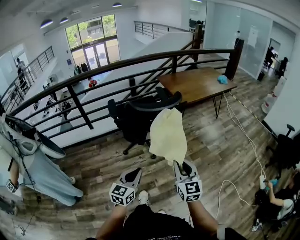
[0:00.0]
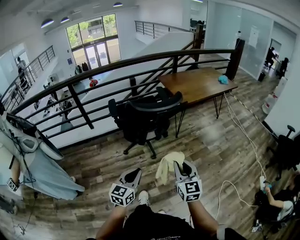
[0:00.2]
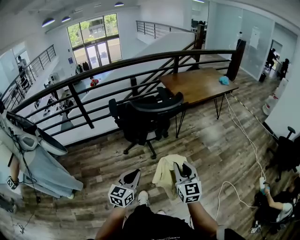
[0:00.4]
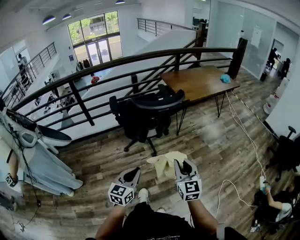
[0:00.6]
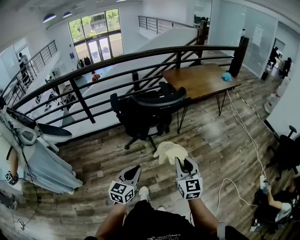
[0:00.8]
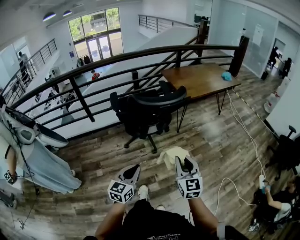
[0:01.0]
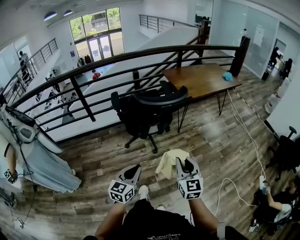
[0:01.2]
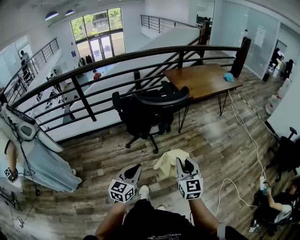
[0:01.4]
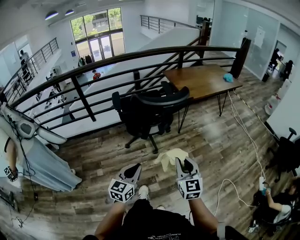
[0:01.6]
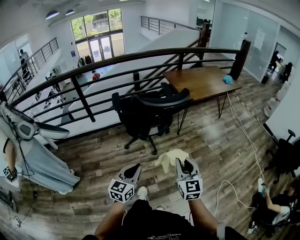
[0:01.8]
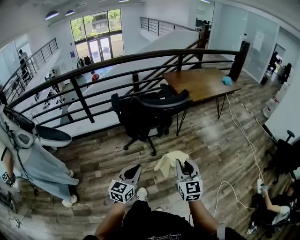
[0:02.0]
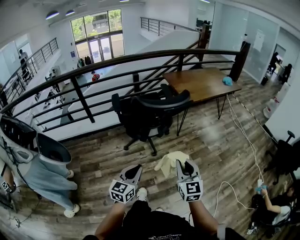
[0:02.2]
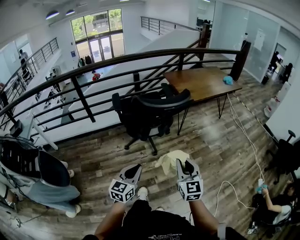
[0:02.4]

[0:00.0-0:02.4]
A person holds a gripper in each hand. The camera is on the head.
0:00.0 to 0:01.2: There are only small adjustments of the grippers.
0:01.2 to 0:02.4: Neither gripper changes place.

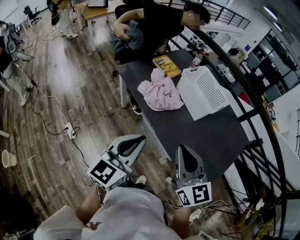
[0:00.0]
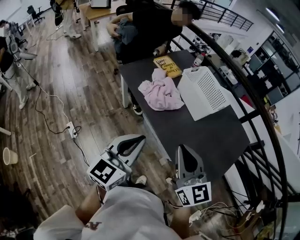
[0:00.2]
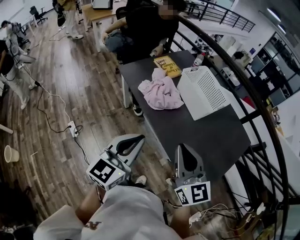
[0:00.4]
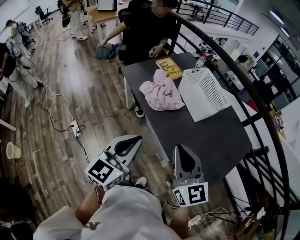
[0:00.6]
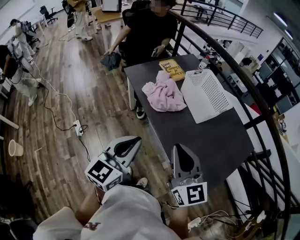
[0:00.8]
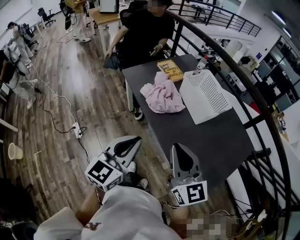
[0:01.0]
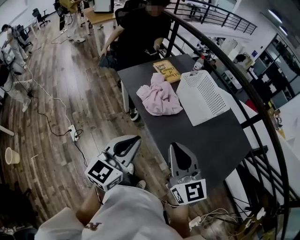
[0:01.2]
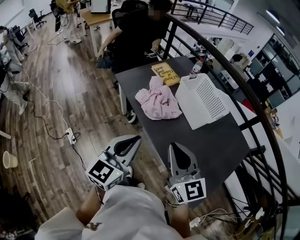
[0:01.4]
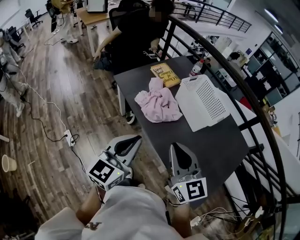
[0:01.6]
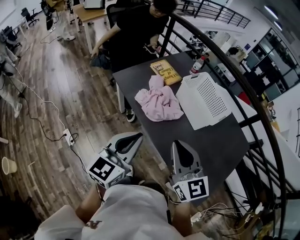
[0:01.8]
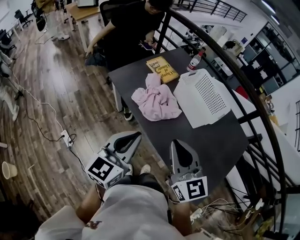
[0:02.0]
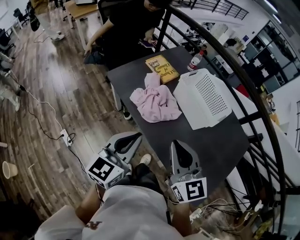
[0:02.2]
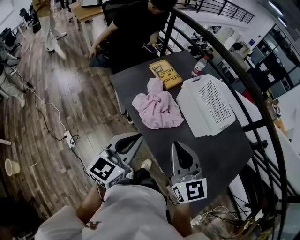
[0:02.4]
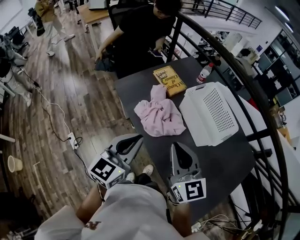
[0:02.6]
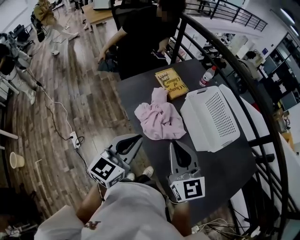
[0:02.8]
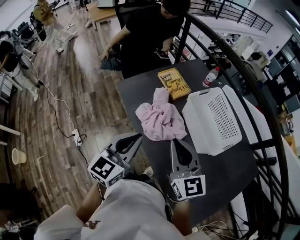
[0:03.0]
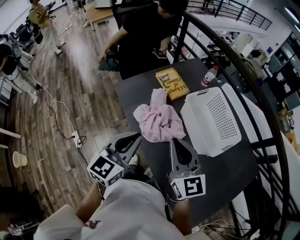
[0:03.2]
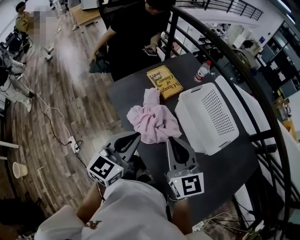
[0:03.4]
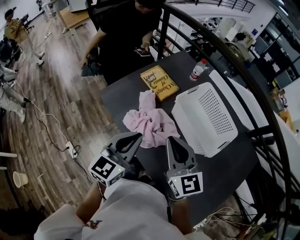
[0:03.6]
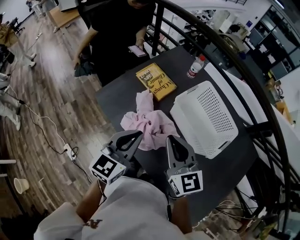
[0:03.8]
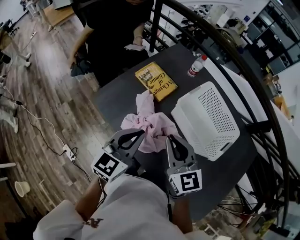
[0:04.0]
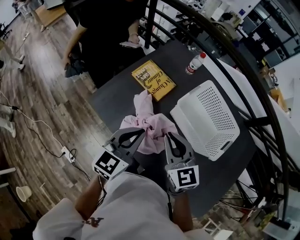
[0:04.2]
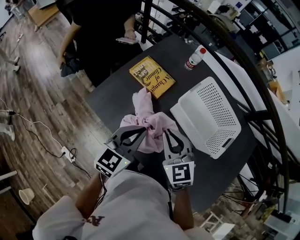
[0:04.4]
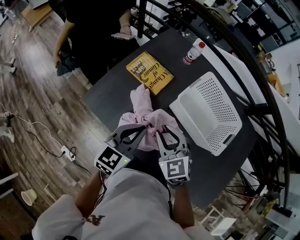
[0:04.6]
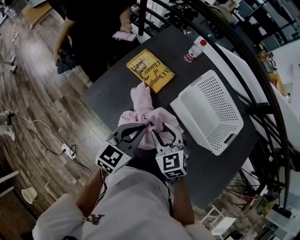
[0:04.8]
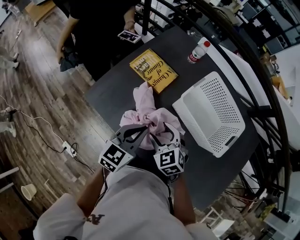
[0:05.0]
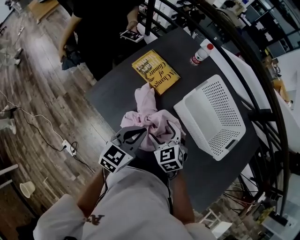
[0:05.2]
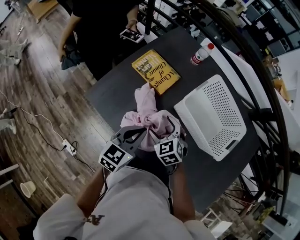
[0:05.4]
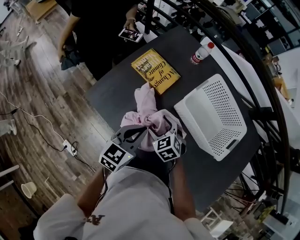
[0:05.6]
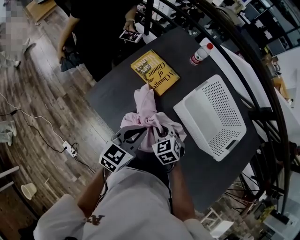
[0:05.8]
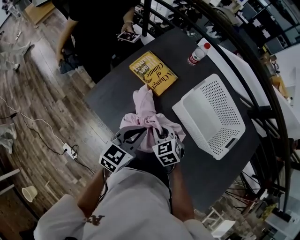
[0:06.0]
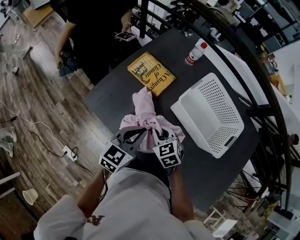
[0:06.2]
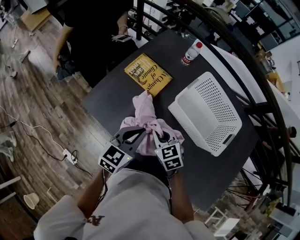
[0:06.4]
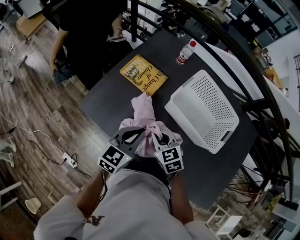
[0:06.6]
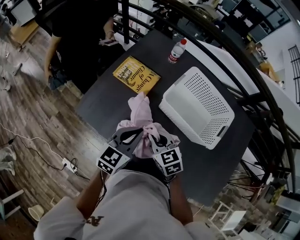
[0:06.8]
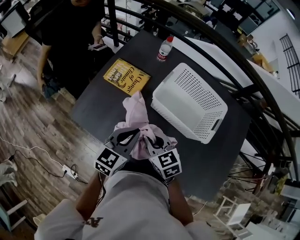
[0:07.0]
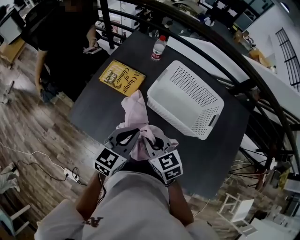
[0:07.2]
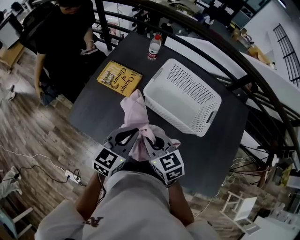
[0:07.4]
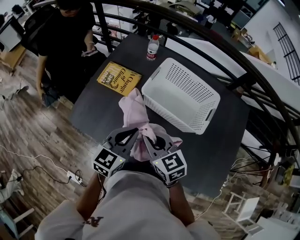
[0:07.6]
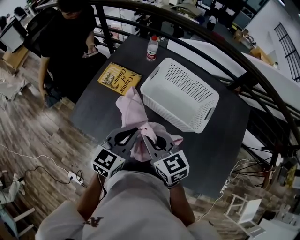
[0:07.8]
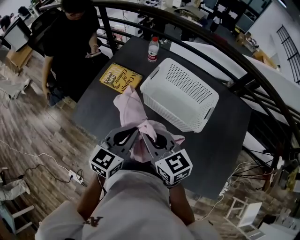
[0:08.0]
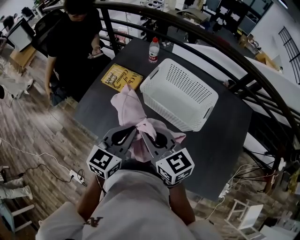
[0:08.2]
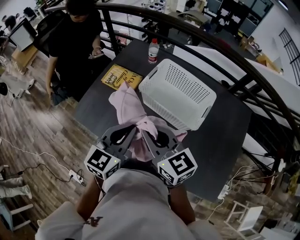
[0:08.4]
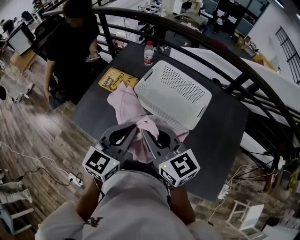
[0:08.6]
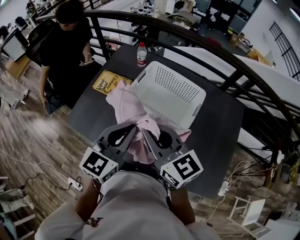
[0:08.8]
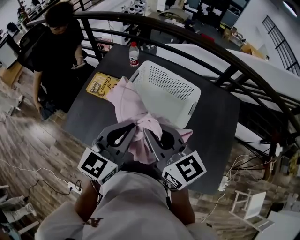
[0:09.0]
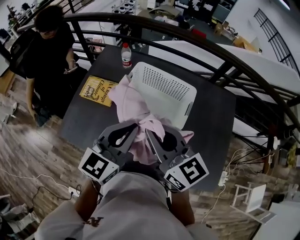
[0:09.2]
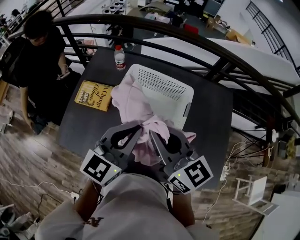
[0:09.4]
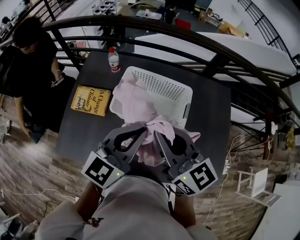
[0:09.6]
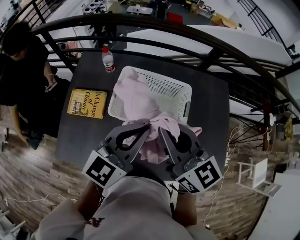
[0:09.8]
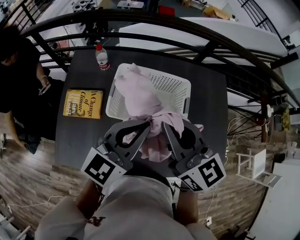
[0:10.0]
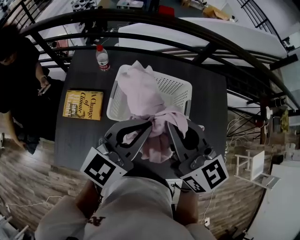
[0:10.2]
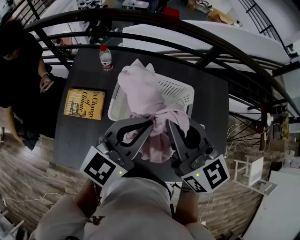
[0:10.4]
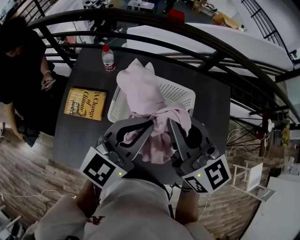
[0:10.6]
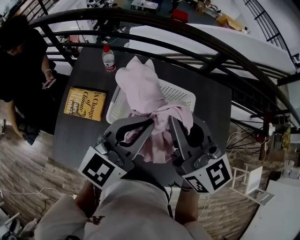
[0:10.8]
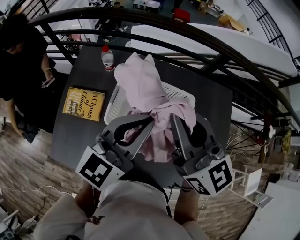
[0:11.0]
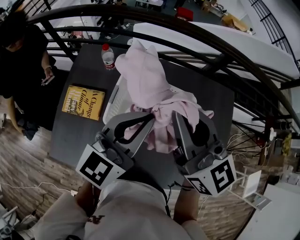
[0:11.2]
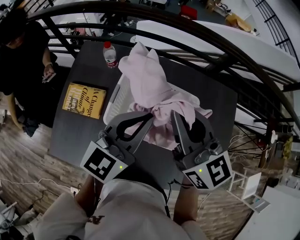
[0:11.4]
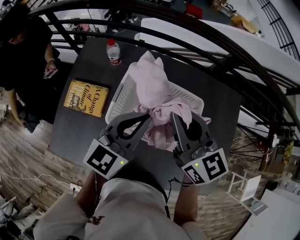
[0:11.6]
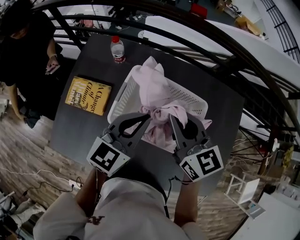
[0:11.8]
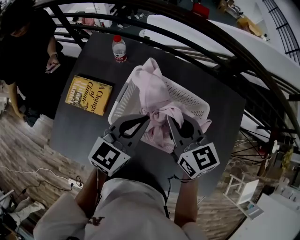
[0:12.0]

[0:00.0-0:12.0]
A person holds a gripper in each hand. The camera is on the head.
0:00.0 to 0:01.6: The grippers both shift forward by approximately 5 cm.
0:01.6 to 0:03.0: Both grippers travel together forward, approximately 15 cm.
0:03.0 to 0:04.4: Both grippers move forward and downward, roughly 20 cm. The left gripper turns by about 30 degrees. The right gripper swivels roughly 30 degrees.
0:04.4 to 0:06.0: The right gripper heads downward, covering about 15 cm, turns by some 20 degrees, and opens, then closes again; the left gripper moves downward, roughly 5 cm.
0:06.0 to 0:07.6: The left gripper is displaced to the right and upward by roughly 10 cm. Meanwhile the right gripper moves upward and to the right, about 15 cm, and swivels about 30 degrees.
0:07.6 to 0:09.0: The two grippers go roughly 15 cm upward and to the right. The right gripper swivels roughly 20 degrees.
0:09.0 to 0:10.4: The right gripper shifts by about 15 cm, and turns by about 20 degrees. The left gripper shifts by some 15 cm, and swivels about 30 degrees.
0:10.4 to 0:12.0: The two grippers go about 15 cm downward and forward.

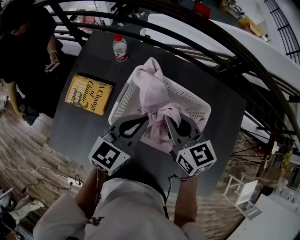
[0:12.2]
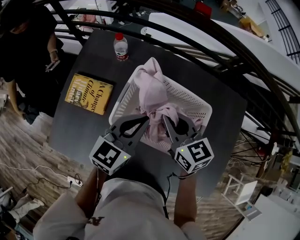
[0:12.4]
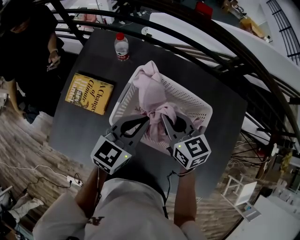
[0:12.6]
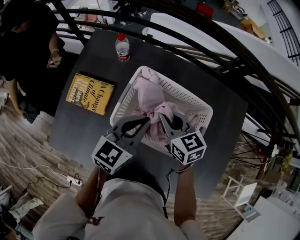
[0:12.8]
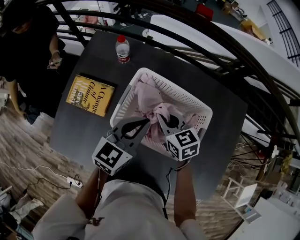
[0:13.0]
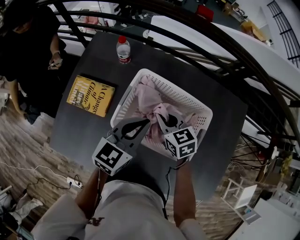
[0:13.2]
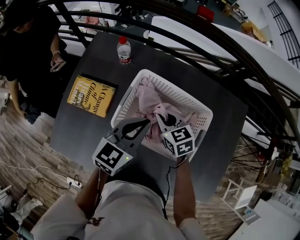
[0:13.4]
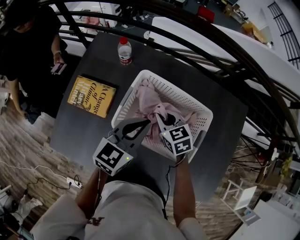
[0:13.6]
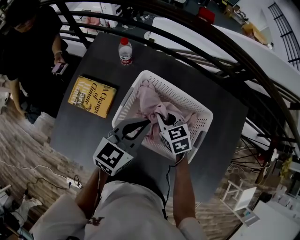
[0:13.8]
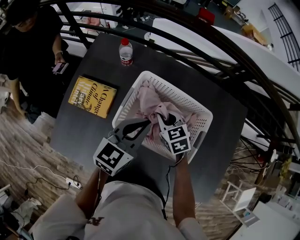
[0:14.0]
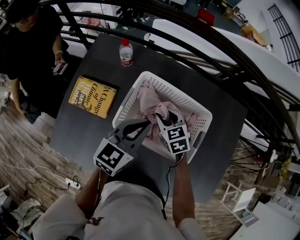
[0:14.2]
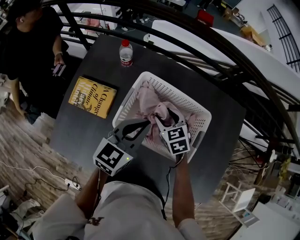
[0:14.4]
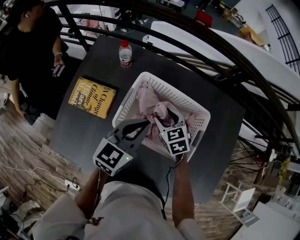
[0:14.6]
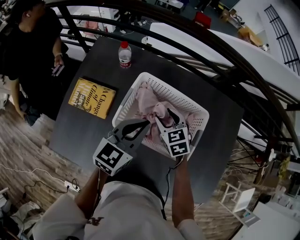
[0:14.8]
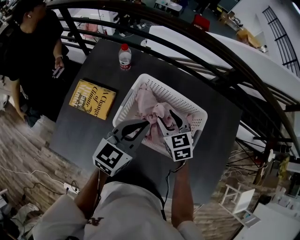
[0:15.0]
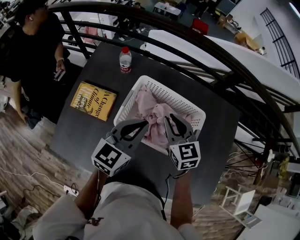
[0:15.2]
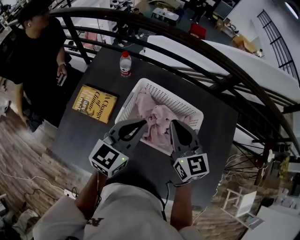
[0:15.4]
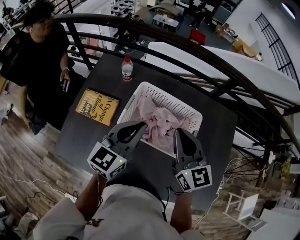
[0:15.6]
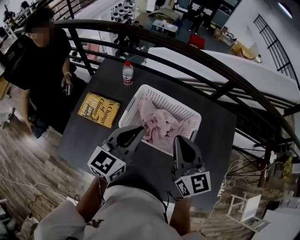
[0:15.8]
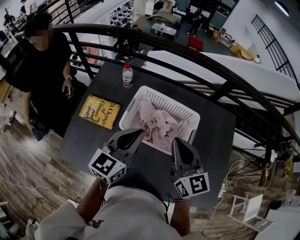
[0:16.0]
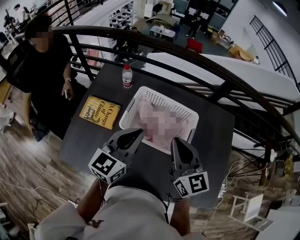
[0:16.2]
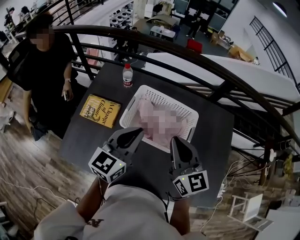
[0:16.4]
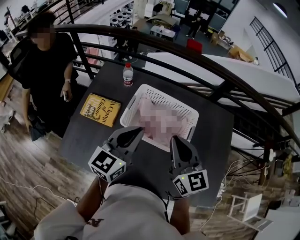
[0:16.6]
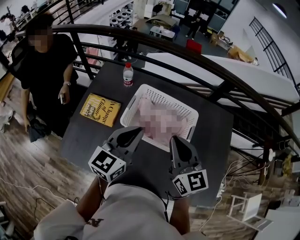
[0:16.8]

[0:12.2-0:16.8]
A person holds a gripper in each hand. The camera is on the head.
0:12.2 to 0:13.8: The right gripper goes approximately 15 cm downward, and turns by approximately 20 degrees.
0:13.8 to 0:15.2: The right gripper goes some 10 cm upward, turns by roughly 20 degrees, and opens, then closes again.
0:15.2 to 0:16.8: The right gripper travels upward and backward by some 20 cm, and swivels some 20 degrees. The left gripper goes roughly 10 cm backward and upward.

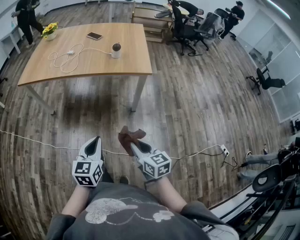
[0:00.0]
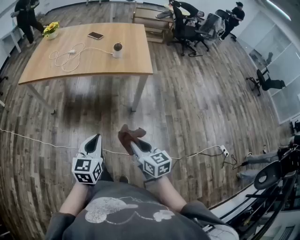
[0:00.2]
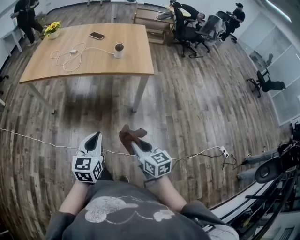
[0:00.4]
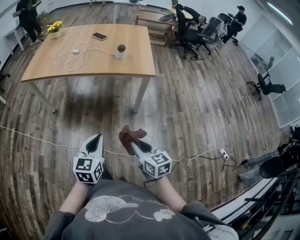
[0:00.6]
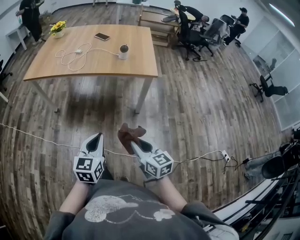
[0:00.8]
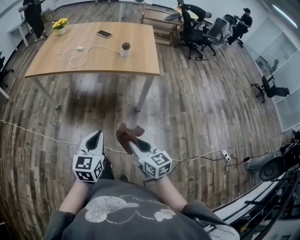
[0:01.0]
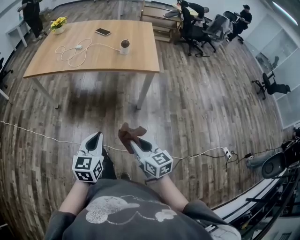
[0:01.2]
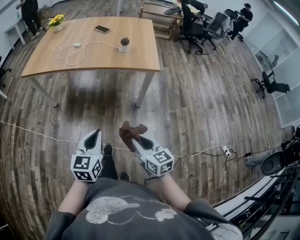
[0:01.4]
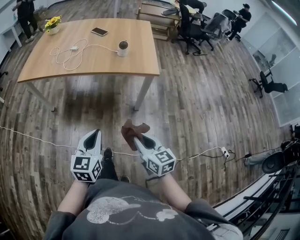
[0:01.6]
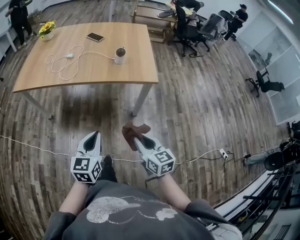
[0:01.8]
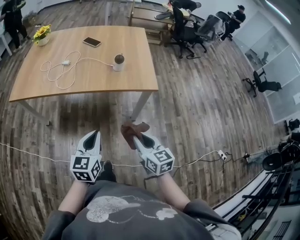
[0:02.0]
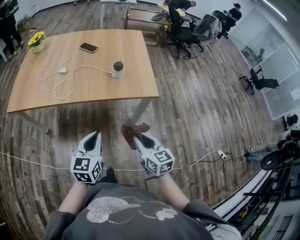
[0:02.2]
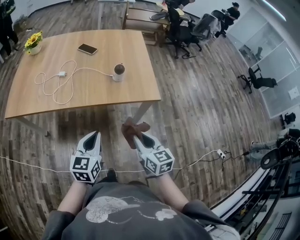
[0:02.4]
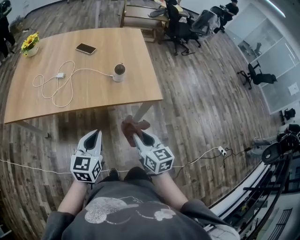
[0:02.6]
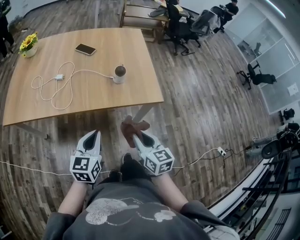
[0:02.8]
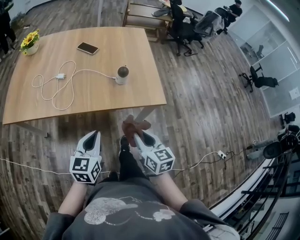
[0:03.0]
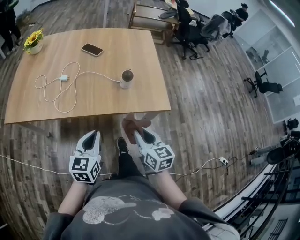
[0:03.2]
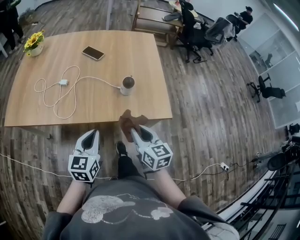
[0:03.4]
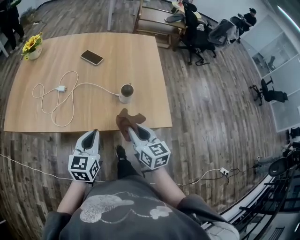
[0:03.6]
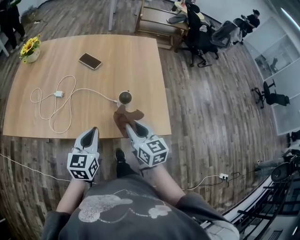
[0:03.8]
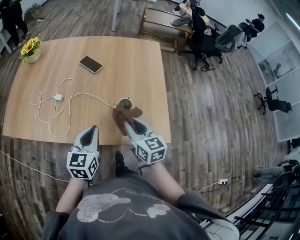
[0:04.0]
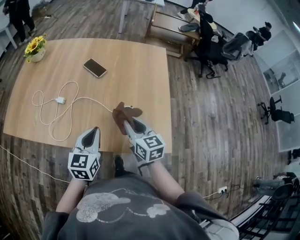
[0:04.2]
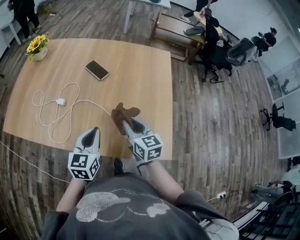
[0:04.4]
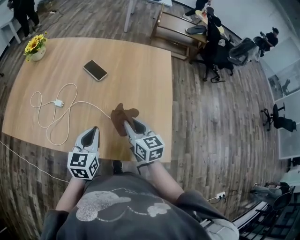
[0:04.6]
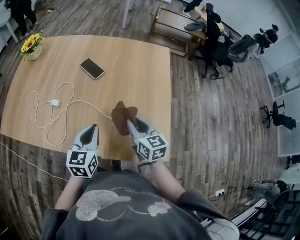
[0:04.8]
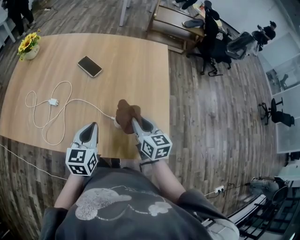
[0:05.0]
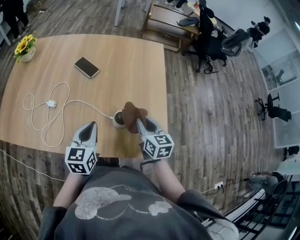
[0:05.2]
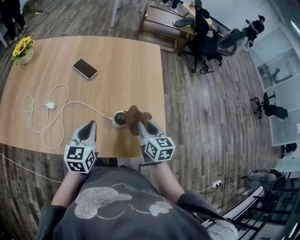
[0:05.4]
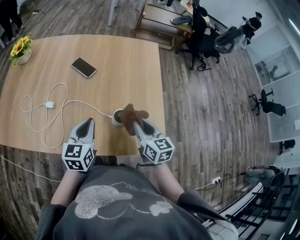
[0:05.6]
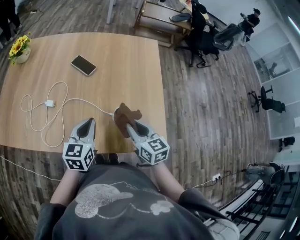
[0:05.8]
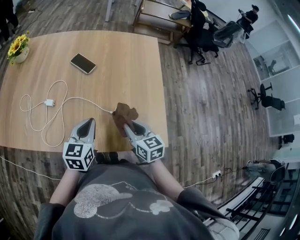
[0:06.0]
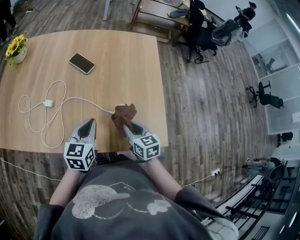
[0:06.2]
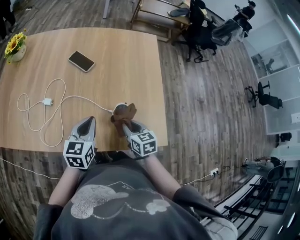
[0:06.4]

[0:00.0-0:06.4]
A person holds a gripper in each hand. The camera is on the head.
0:00.0 to 0:01.6: The two grippers go about 5 cm forward.
0:01.6 to 0:03.2: The grippers both shift forward by approximately 30 cm.
0:03.2 to 0:04.8: The grippers both shift forward by about 25 cm.
0:04.8 to 0:06.4: The right gripper travels downward by some 10 cm.
